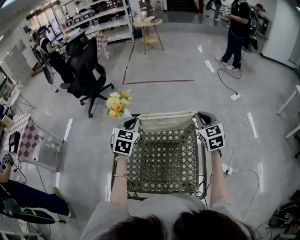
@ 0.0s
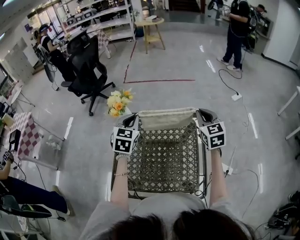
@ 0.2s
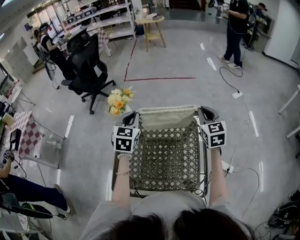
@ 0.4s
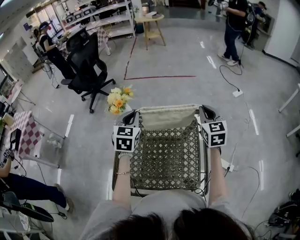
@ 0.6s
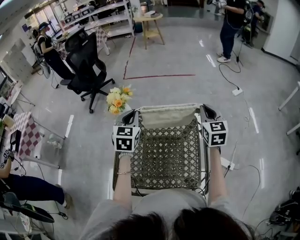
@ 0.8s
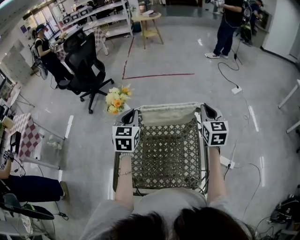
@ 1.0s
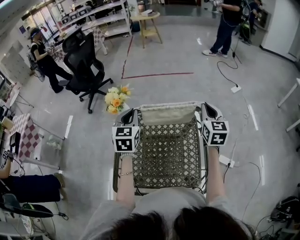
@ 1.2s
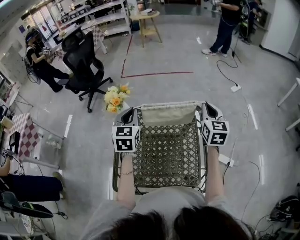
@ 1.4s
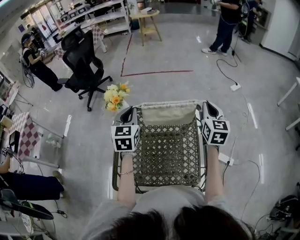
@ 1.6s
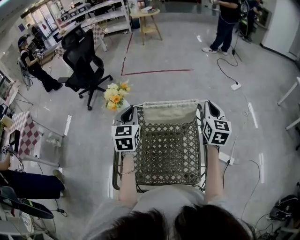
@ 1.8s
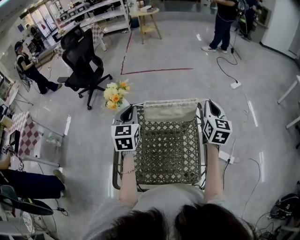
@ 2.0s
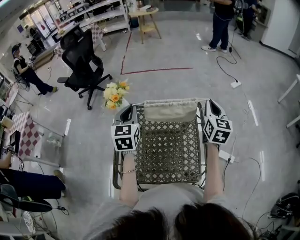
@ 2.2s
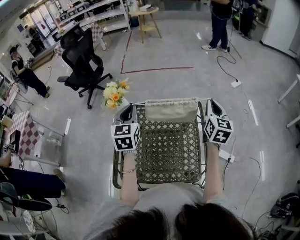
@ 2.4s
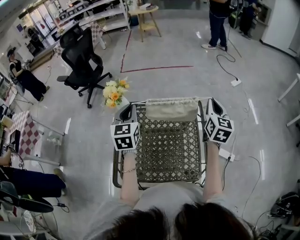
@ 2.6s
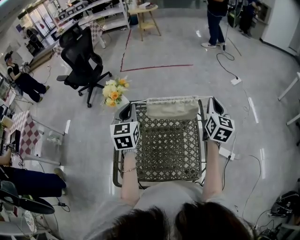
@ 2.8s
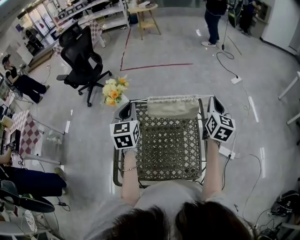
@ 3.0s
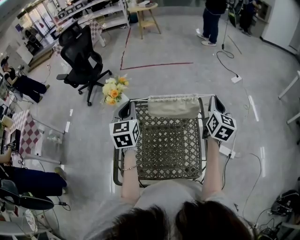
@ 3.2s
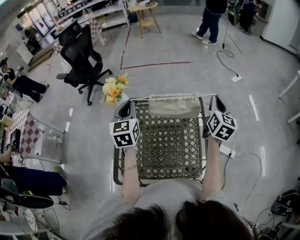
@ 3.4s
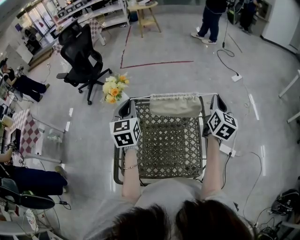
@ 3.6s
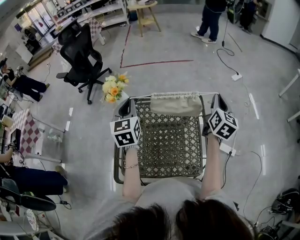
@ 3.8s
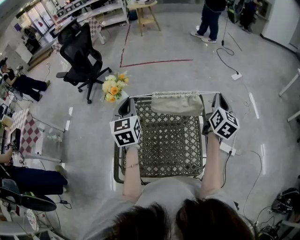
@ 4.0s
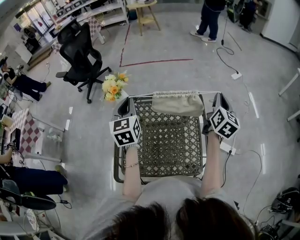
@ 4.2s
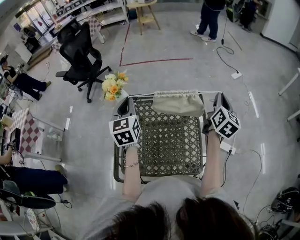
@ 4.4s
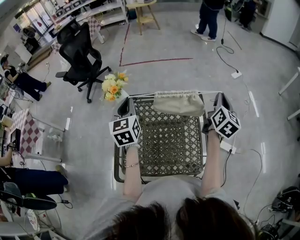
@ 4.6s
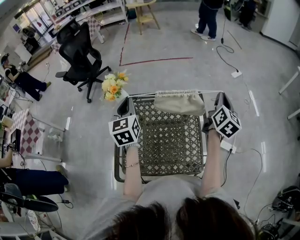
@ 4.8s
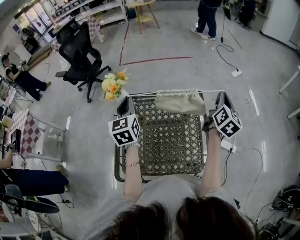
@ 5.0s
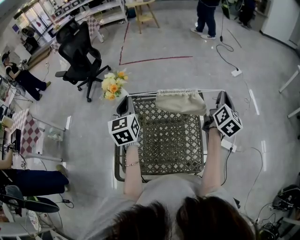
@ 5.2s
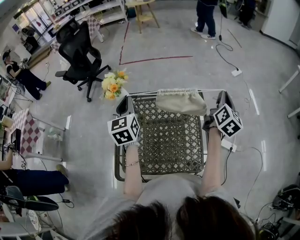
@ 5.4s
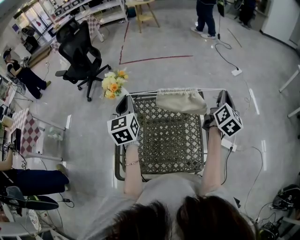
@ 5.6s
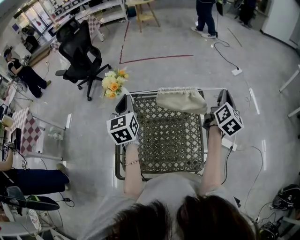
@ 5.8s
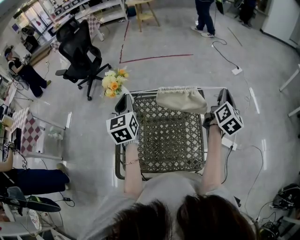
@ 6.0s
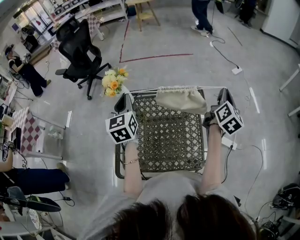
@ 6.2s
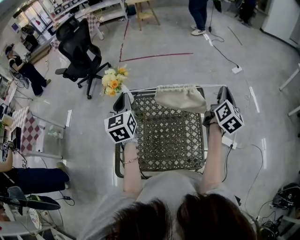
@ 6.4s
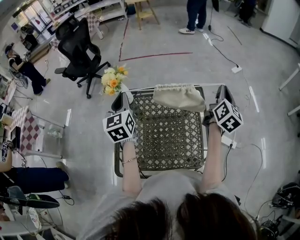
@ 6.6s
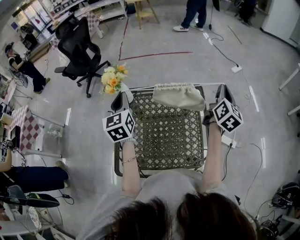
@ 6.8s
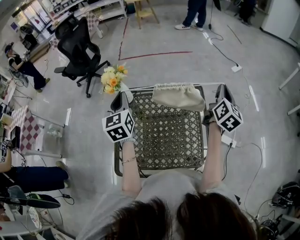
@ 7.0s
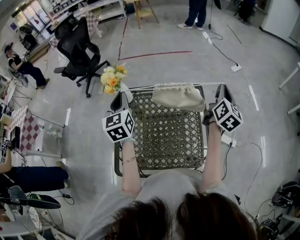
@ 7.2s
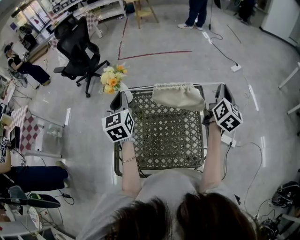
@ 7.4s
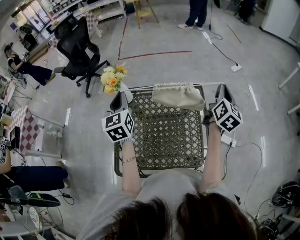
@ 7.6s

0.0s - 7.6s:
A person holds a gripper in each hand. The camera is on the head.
0.0s - 1.6s: The right gripper turns by approximately 20 degrees.
1.6s - 3.0s: The grippers stay close to where they were, moving slightly.
3.0s - 4.6s: The grippers move only a little.
4.6s - 7.6s: The grippers make only small movements.

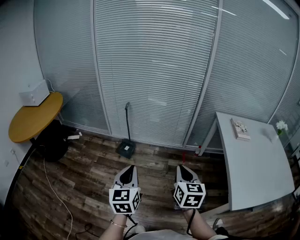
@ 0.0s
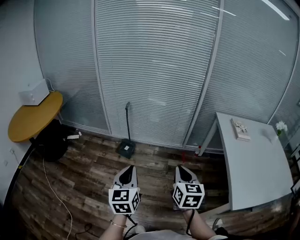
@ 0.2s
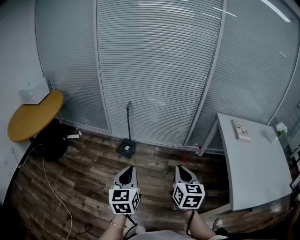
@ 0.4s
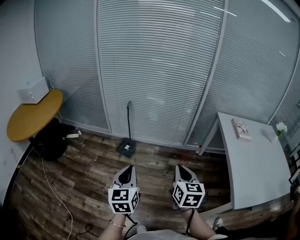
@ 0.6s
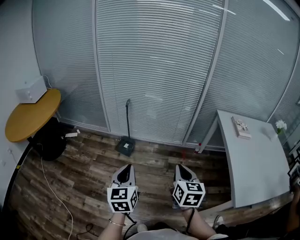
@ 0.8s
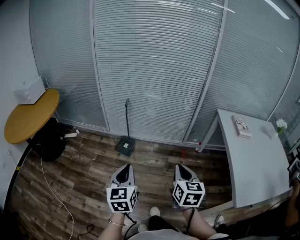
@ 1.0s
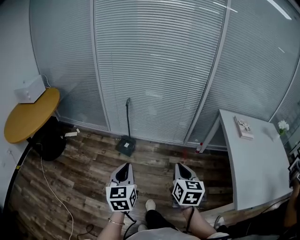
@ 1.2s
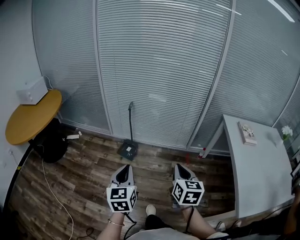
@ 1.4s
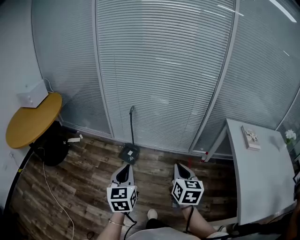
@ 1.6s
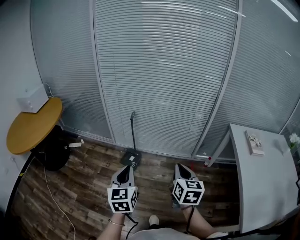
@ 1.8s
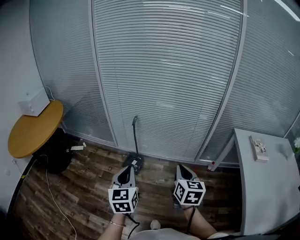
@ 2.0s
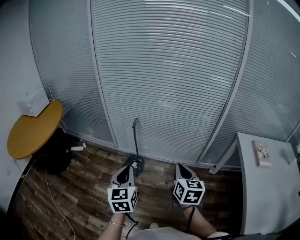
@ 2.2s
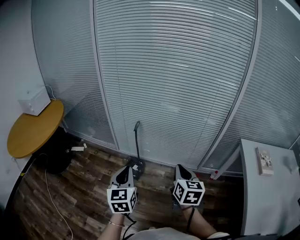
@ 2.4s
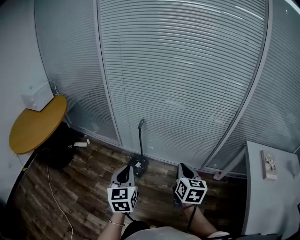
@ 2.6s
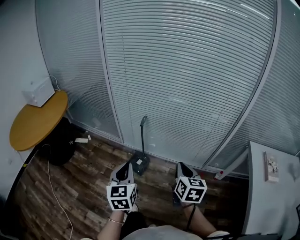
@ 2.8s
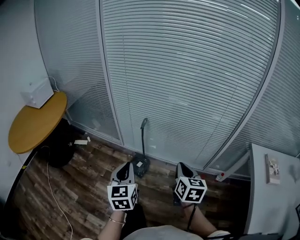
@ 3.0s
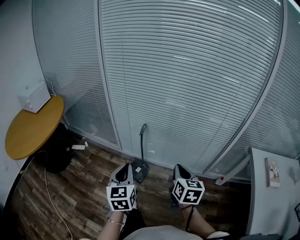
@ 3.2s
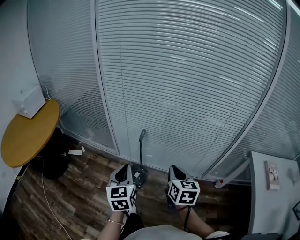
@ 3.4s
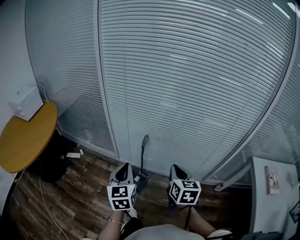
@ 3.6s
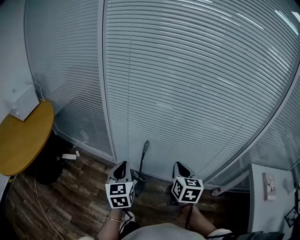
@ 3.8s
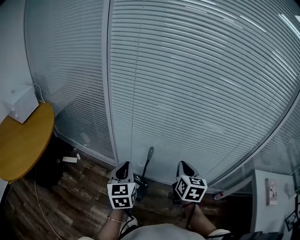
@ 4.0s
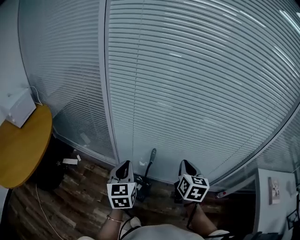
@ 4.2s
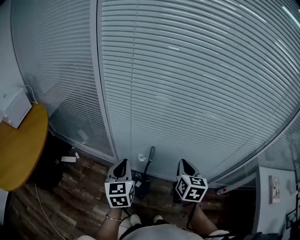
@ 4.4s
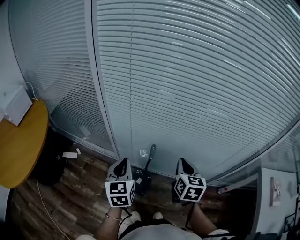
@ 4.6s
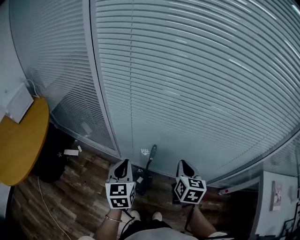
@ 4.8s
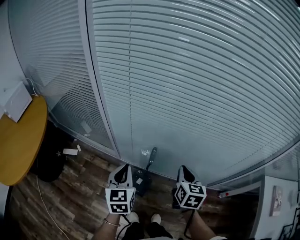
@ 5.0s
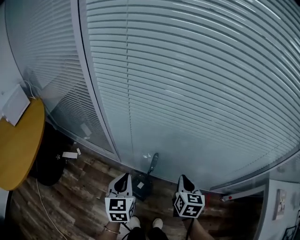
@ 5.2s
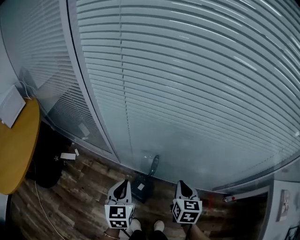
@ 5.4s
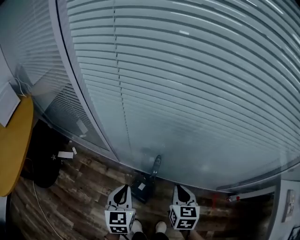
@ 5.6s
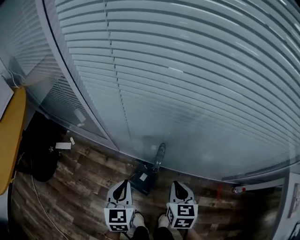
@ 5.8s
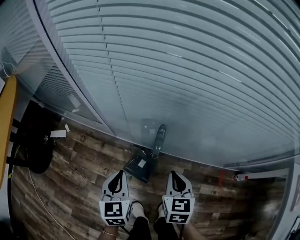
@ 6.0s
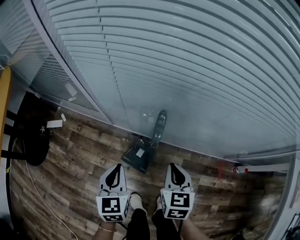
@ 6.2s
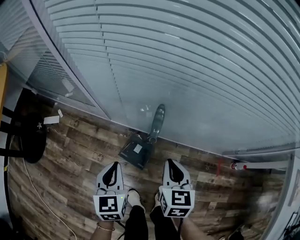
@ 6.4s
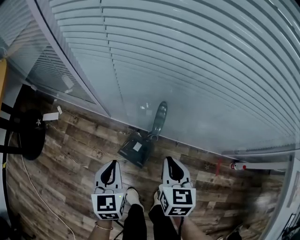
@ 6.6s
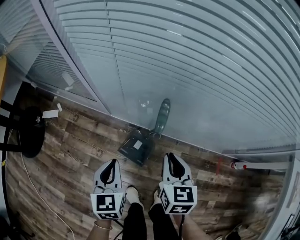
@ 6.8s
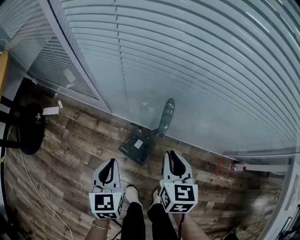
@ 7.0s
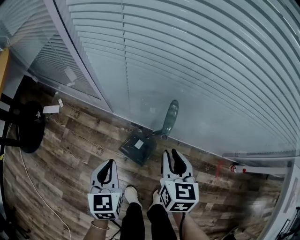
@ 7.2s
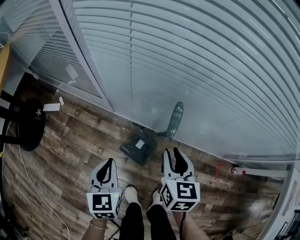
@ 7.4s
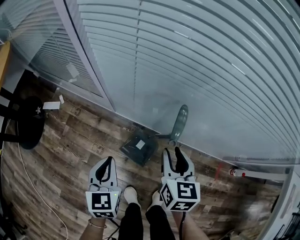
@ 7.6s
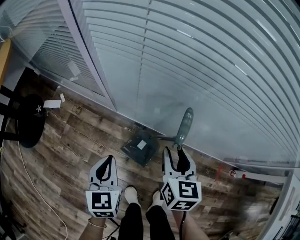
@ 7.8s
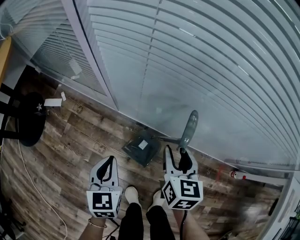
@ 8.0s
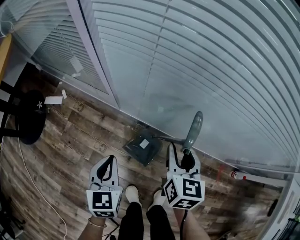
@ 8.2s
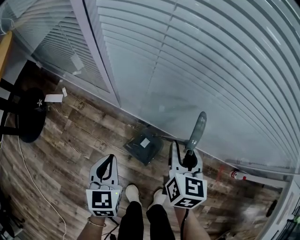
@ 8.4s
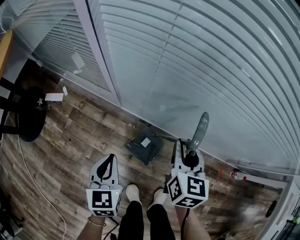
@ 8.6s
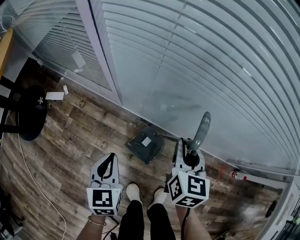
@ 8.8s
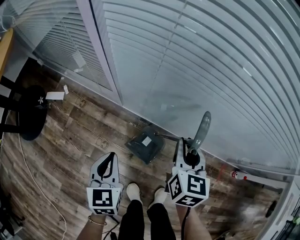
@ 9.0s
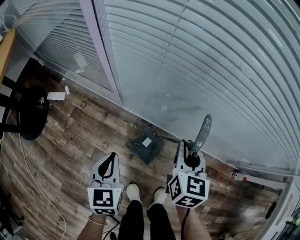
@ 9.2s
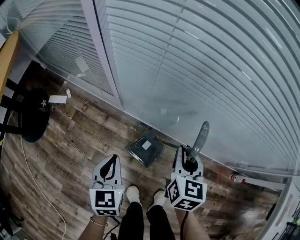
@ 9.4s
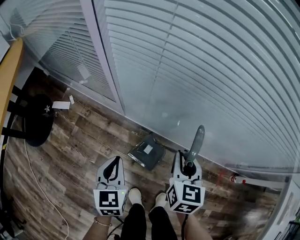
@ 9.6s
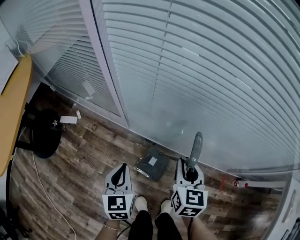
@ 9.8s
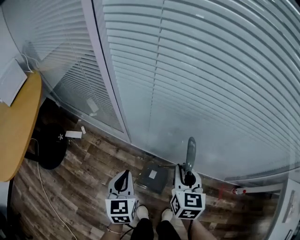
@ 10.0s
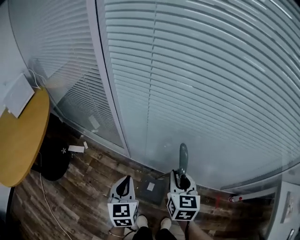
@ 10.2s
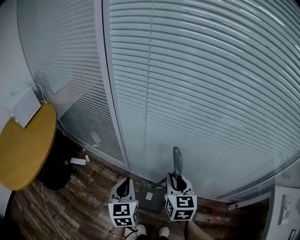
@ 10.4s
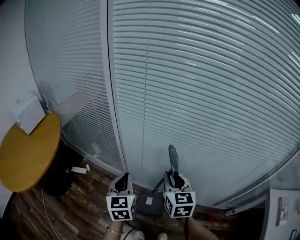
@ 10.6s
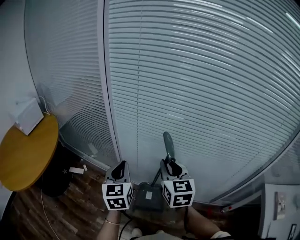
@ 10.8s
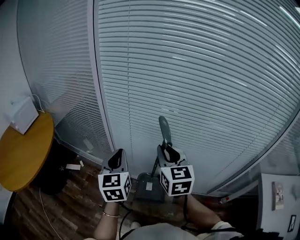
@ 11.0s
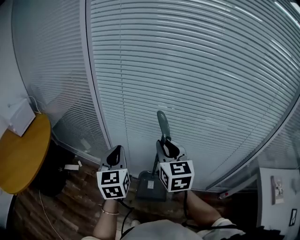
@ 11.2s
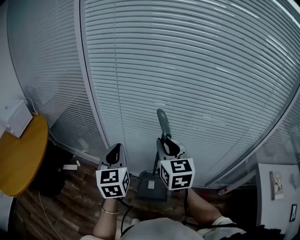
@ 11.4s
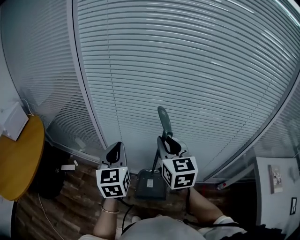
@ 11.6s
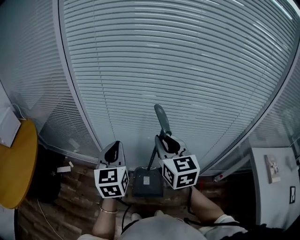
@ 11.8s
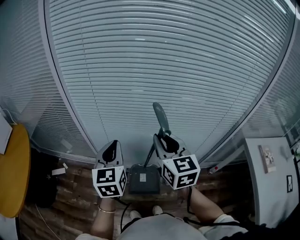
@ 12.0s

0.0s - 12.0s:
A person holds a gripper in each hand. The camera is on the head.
0.0s - 1.6s: Both grippers move forward and to the left, roughly 15 cm.
1.6s - 3.0s: Both grippers move forward, approximately 25 cm.
3.0s - 4.4s: The left gripper is displaced forward and to the left by approximately 30 cm. The right gripper shifts approximately 25 cm forward.
4.4s - 6.0s: The grippers both shift downward by about 30 cm.
6.0s - 7.6s: The left gripper is displaced to the left by roughly 5 cm; the right gripper shifts by roughly 5 cm, and opens.
7.6s - 9.0s: The grippers move only a little.
9.0s - 10.4s: The grippers both shift upward by some 25 cm.
10.4s - 12.0s: Both grippers move upward and to the right, about 20 cm. The left gripper swivels approximately 20 degrees.

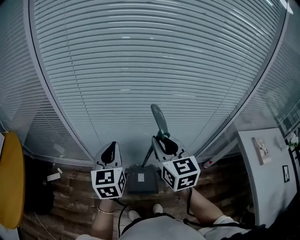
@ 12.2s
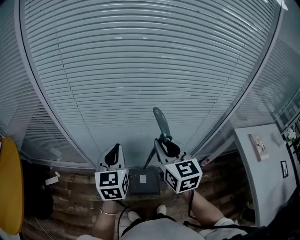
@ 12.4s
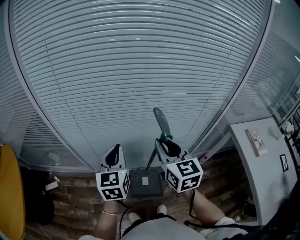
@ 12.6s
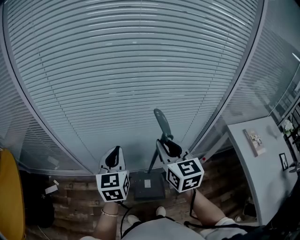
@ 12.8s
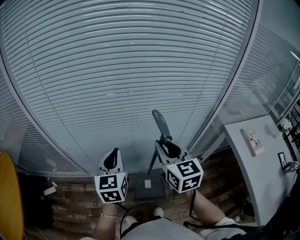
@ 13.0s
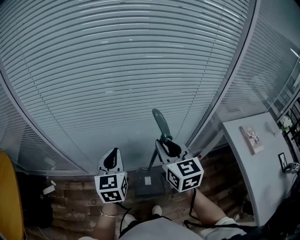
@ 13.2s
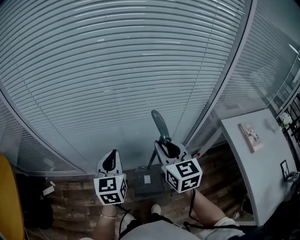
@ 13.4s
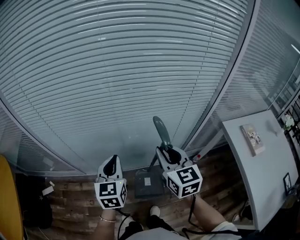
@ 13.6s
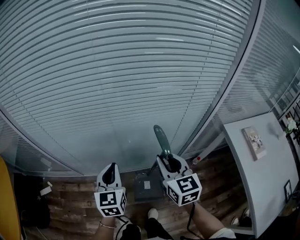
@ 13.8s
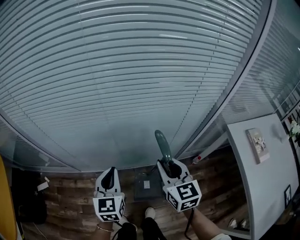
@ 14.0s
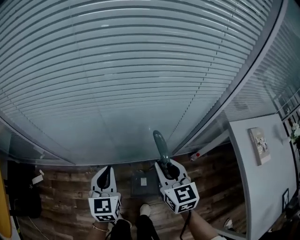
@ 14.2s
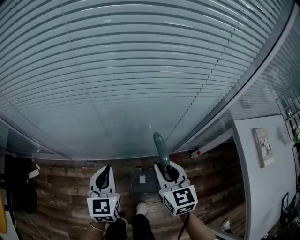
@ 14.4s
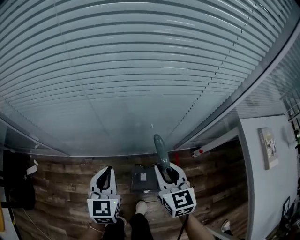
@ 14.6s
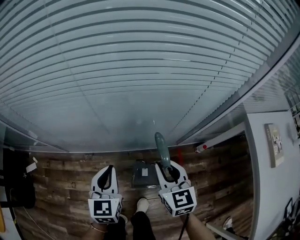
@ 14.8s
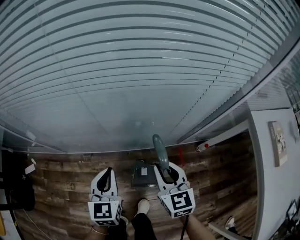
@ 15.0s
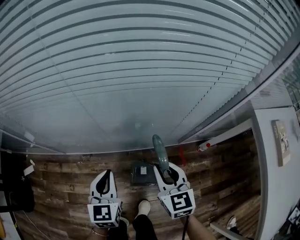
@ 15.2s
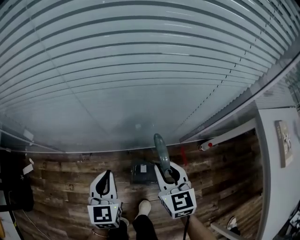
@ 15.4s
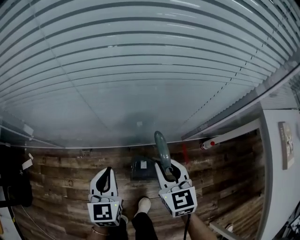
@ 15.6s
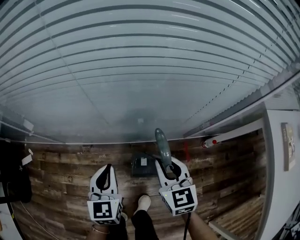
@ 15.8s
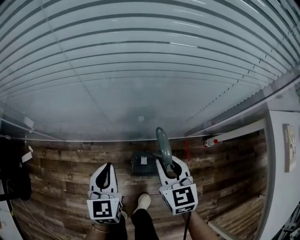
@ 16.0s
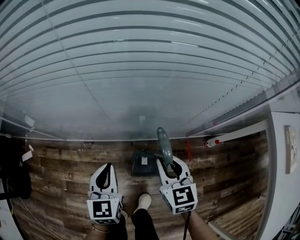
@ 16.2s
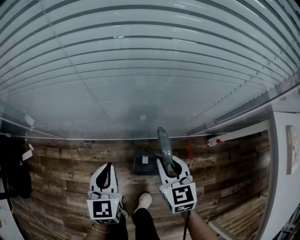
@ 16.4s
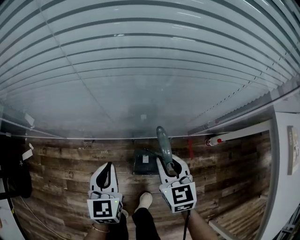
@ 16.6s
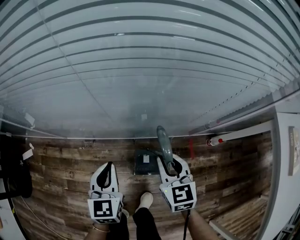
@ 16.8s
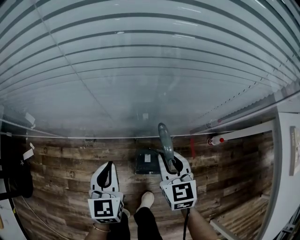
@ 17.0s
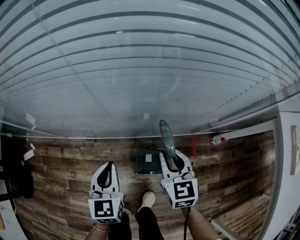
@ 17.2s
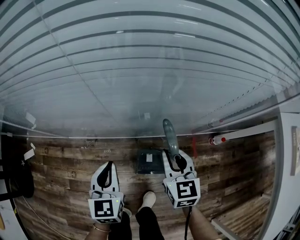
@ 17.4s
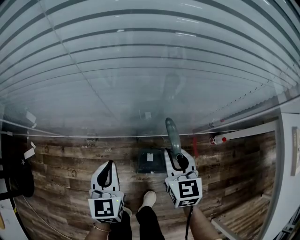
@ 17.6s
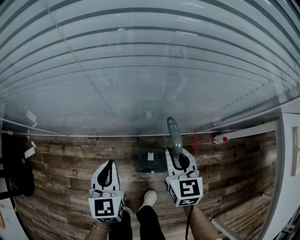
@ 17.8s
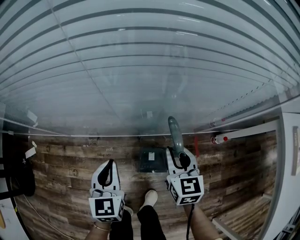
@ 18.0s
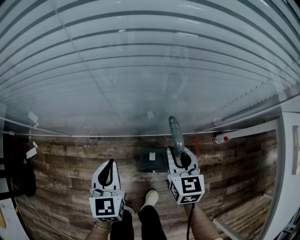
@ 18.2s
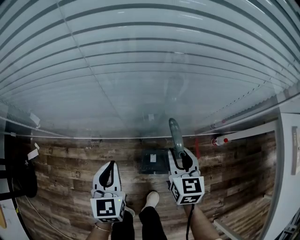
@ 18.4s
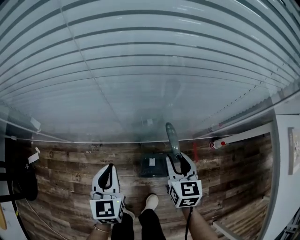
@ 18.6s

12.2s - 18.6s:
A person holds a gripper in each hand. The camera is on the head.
12.2s - 13.8s: The left gripper moves to the right and downward, approximately 20 cm, while the right gripper moves to the right, approximately 20 cm.
13.8s - 15.4s: The two grippers go roughly 25 cm downward.
15.4s - 17.0s: The right gripper shifts approximately 5 cm downward.
17.0s - 18.6s: There are only small adjustments of the grippers.
